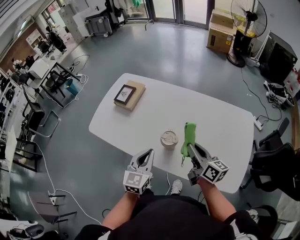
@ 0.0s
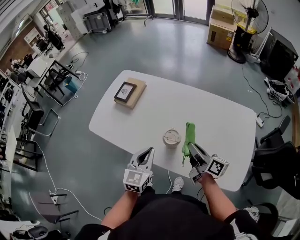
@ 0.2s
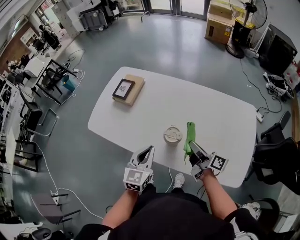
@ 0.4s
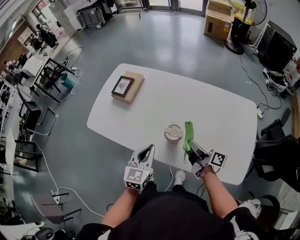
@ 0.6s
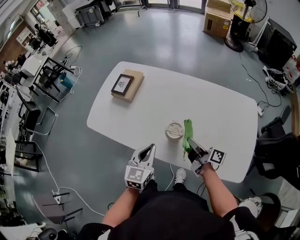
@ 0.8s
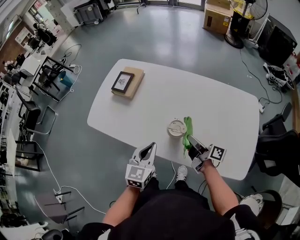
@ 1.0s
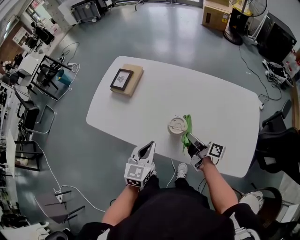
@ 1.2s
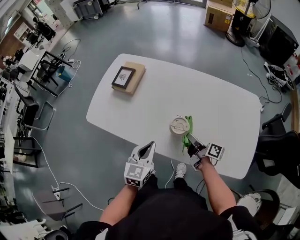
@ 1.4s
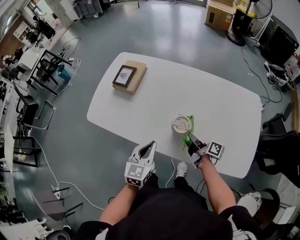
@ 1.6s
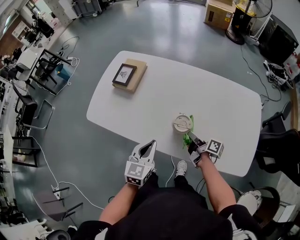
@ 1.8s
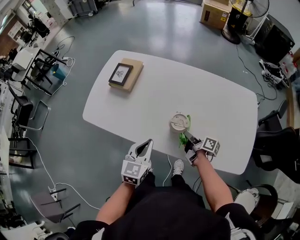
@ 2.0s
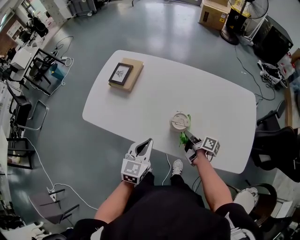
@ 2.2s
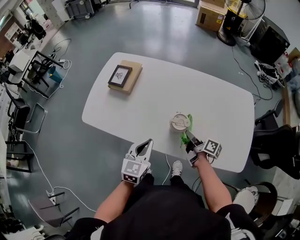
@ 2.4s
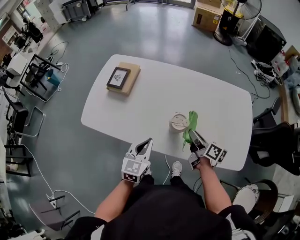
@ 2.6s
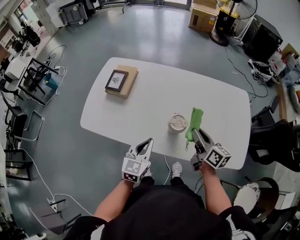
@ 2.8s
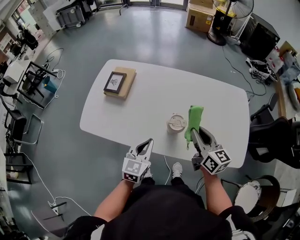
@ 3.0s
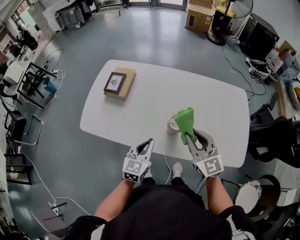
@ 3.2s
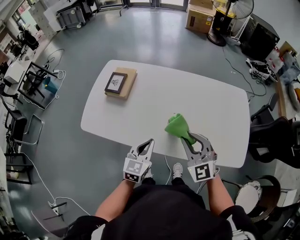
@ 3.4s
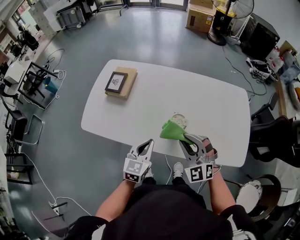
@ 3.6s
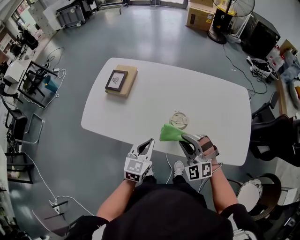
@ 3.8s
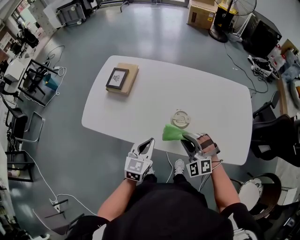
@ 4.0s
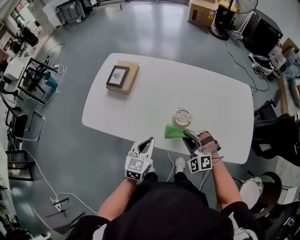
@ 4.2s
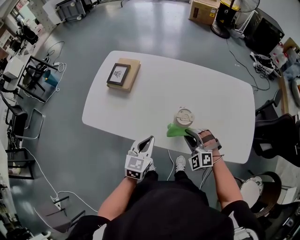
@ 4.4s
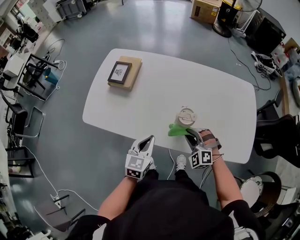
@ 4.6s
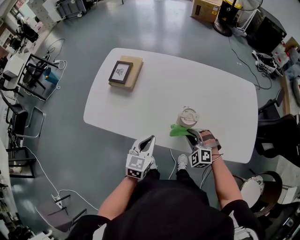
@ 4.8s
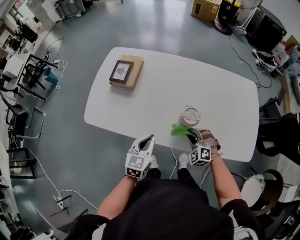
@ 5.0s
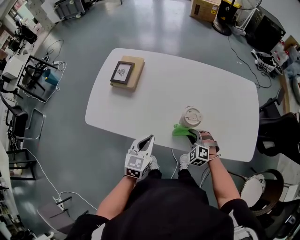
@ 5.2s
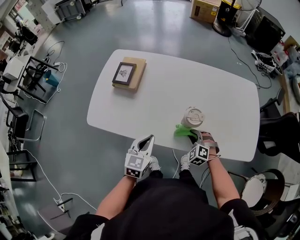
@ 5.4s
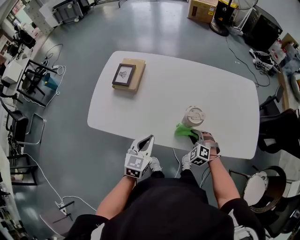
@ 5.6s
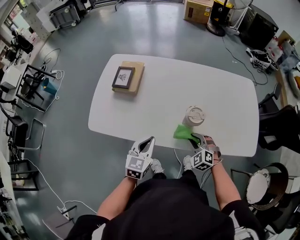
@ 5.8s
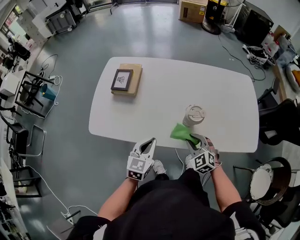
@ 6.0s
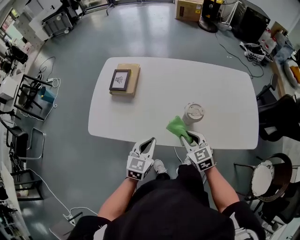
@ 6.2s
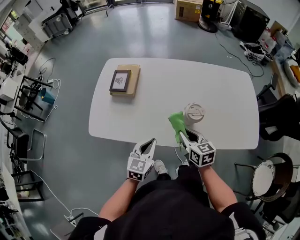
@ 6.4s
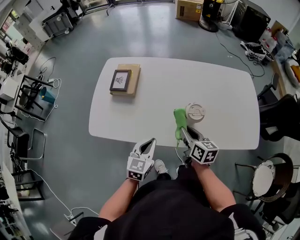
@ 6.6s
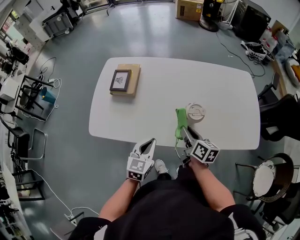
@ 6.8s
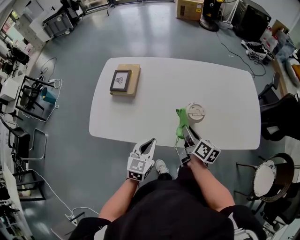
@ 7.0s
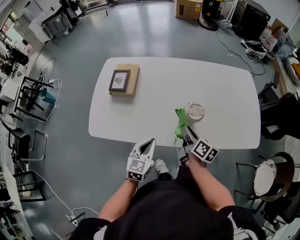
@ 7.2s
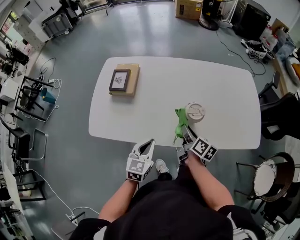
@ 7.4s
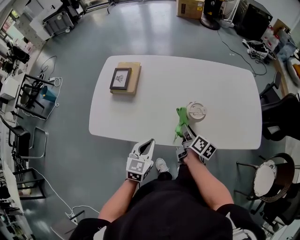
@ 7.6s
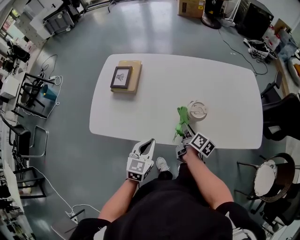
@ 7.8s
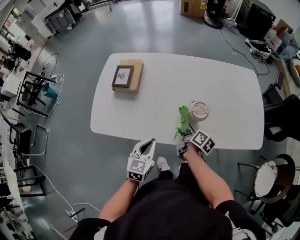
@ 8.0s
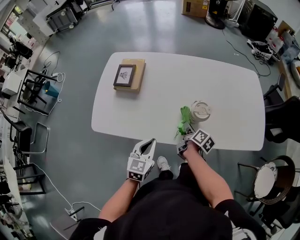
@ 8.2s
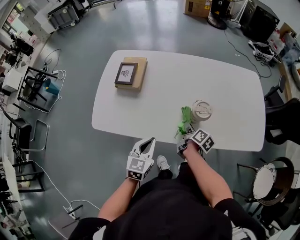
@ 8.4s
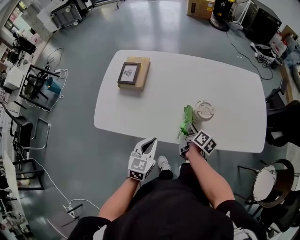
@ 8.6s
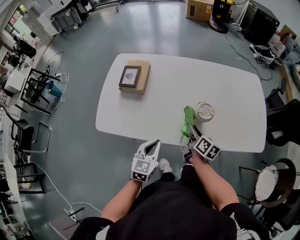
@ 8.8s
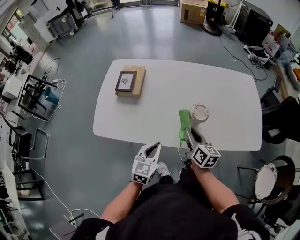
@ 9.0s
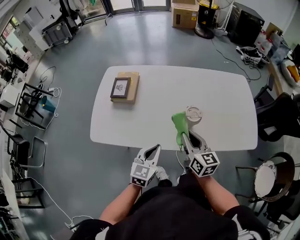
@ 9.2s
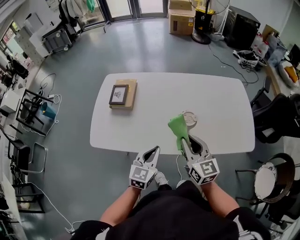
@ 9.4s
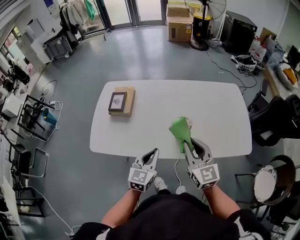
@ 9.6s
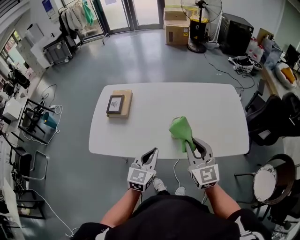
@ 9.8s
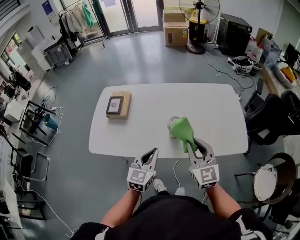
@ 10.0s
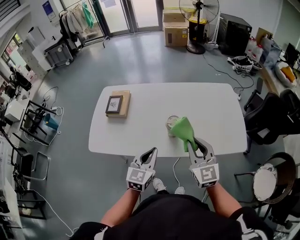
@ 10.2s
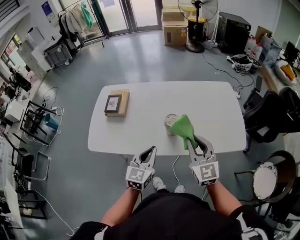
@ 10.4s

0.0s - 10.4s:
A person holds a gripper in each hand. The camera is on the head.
0.0s - 1.4s: The right gripper is displaced downward by some 15 cm, and changes its angle by approximately 30 degrees. Meanwhile the left gripper shifts by about 5 cm.
1.4s - 3.0s: The right gripper is displaced upward by some 15 cm, and twists approximately 50 degrees counterclockwise, seen from behind.
3.0s - 4.4s: The right gripper heads downward and to the left, covering approximately 15 cm, and twists roughly 80 degrees counterclockwise, seen from behind.
4.4s - 6.0s: The right gripper reaches about 10 cm downward, then returns, and swivels roughly 30 degrees. Meanwhile the left gripper goes roughly 5 cm to the left.
6.0s - 7.4s: The right gripper goes about 5 cm forward, and rolls clockwise, seen from behind, by about 90 degrees.
7.4s - 9.0s: The right gripper turns by roughly 20 degrees.
9.0s - 10.4s: The right gripper is displaced upward, to the right and backward by about 20 cm, and twists some 40 degrees counterclockwise, seen from behind. Meanwhile the left gripper is displaced upward and to the right by some 15 cm.

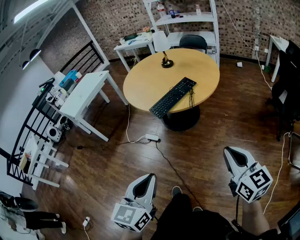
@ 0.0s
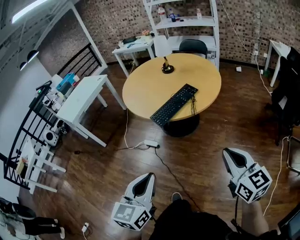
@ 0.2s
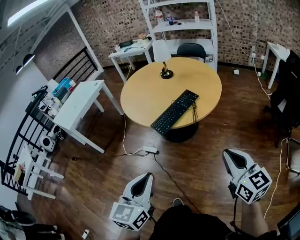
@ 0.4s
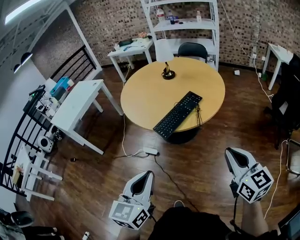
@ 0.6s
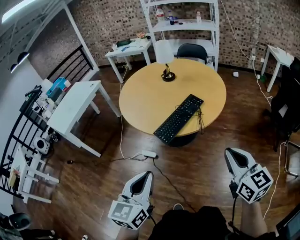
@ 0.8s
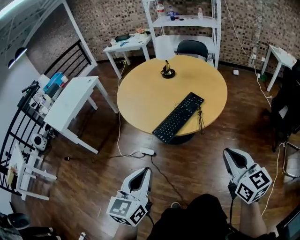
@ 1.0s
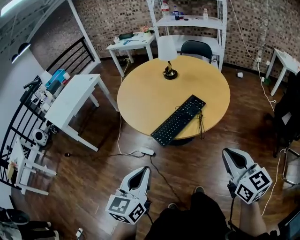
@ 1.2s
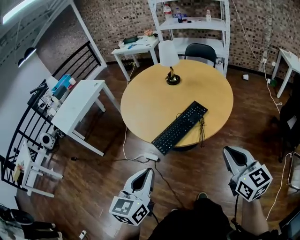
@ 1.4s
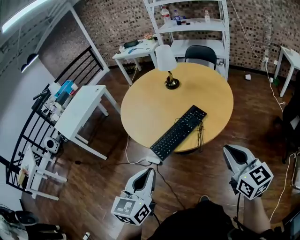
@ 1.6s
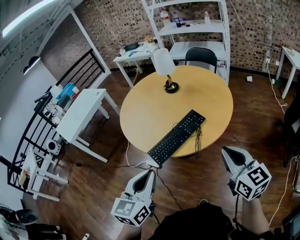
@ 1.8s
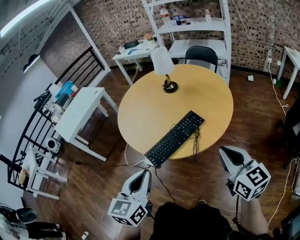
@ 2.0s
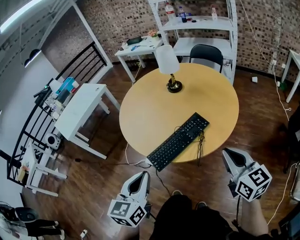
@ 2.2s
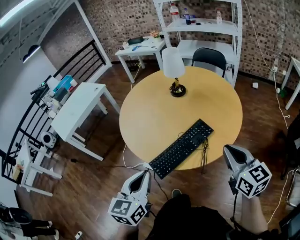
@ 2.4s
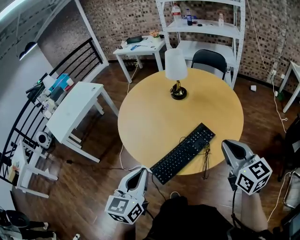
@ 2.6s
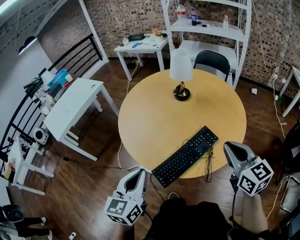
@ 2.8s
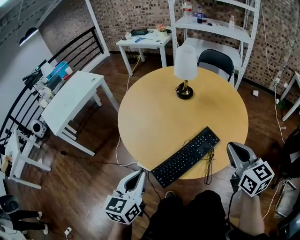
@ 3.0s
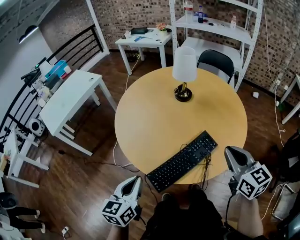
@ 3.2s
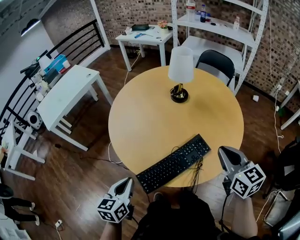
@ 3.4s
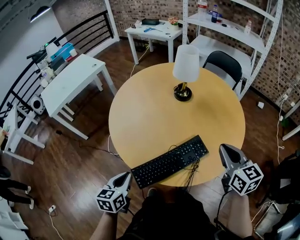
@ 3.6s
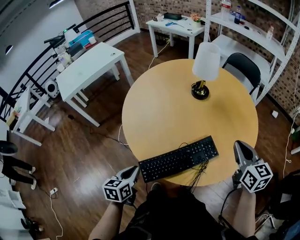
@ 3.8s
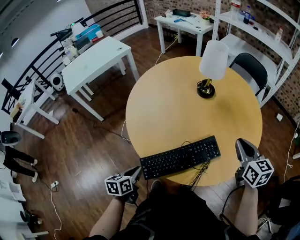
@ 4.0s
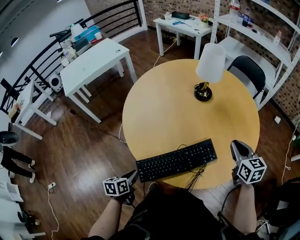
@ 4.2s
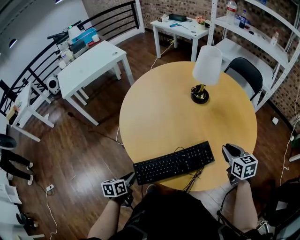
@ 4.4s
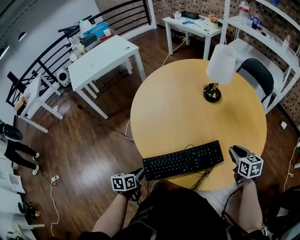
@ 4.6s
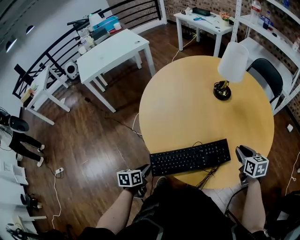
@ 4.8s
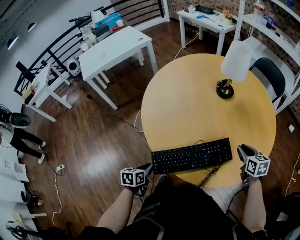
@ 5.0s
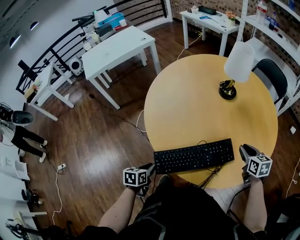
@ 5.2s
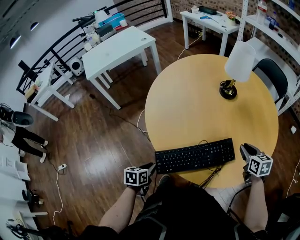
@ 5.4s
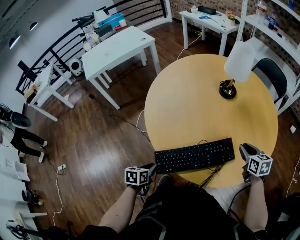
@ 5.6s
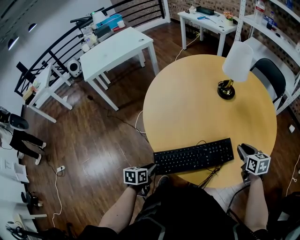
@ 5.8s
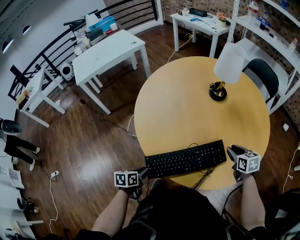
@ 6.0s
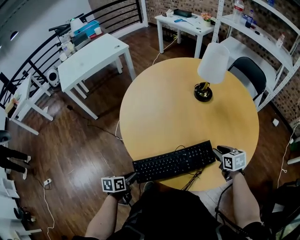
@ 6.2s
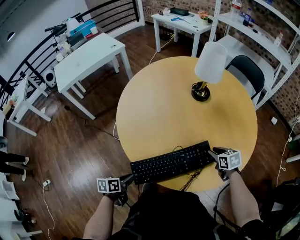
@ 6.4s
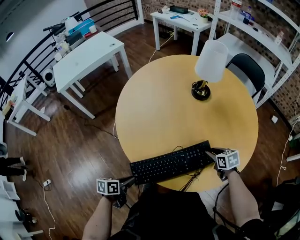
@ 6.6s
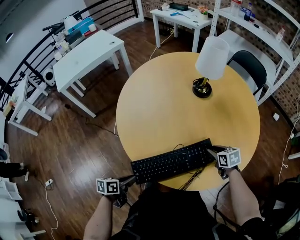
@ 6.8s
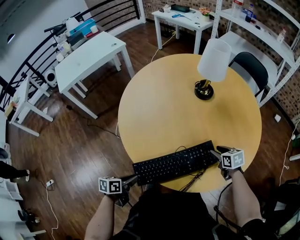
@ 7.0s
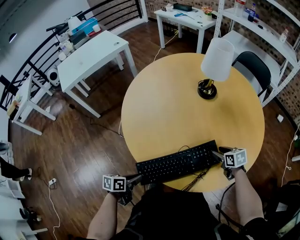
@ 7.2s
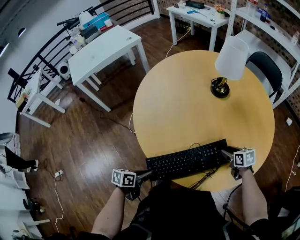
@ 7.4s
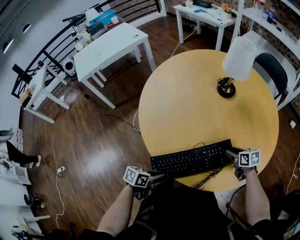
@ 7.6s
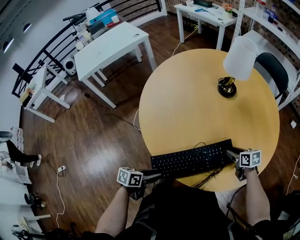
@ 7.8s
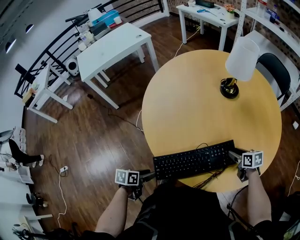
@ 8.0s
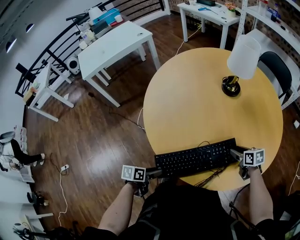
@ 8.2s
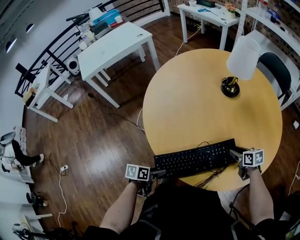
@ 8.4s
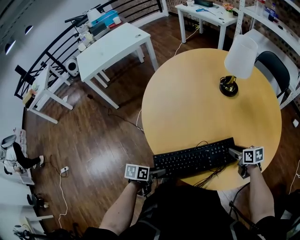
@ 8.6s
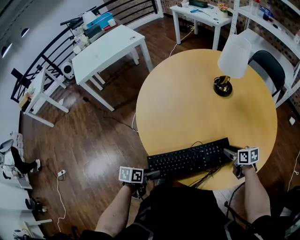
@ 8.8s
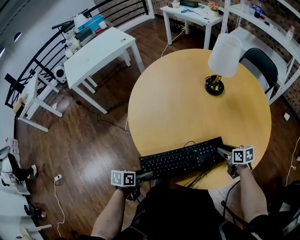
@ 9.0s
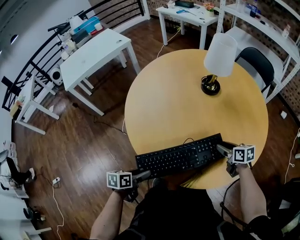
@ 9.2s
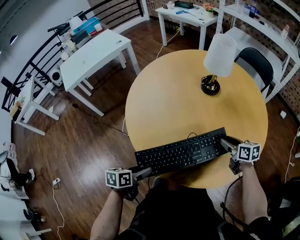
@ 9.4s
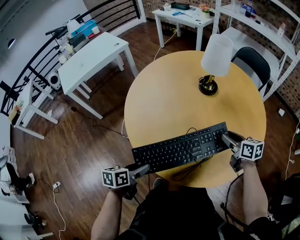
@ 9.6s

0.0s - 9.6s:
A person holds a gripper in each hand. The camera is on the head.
0.0s - 1.6s: Both grippers travel together forward, approximately 30 cm.
1.6s - 3.2s: The left gripper travels forward, downward and to the left by roughly 25 cm. The right gripper moves forward, some 25 cm.
3.2s - 4.8s: The left gripper travels downward by about 25 cm, and swivels about 40 degrees. Meanwhile the right gripper goes about 30 cm downward, forward and to the right, and rotates about 30 degrees.
4.8s - 6.4s: The right gripper goes approximately 10 cm downward.
6.4s - 8.0s: The left gripper travels to the right and back again, roughly 5 cm each way, and opens up.
8.0s - 9.6s: The left gripper goes about 15 cm upward and forward; the right gripper travels upward by roughly 15 cm, and changes its angle by about 20 degrees.

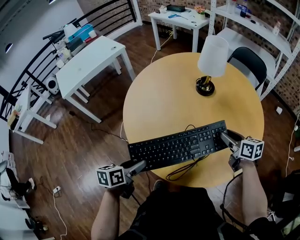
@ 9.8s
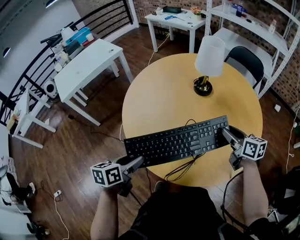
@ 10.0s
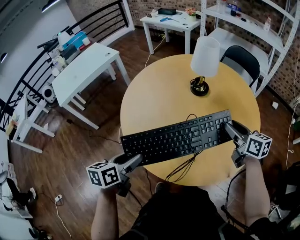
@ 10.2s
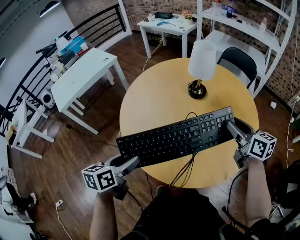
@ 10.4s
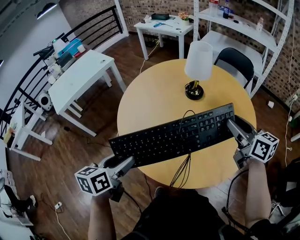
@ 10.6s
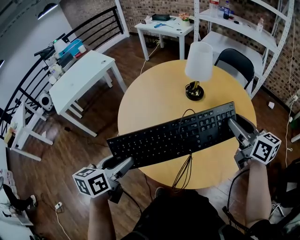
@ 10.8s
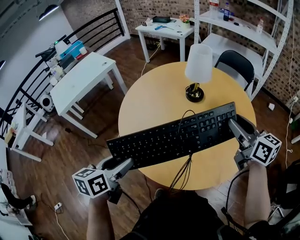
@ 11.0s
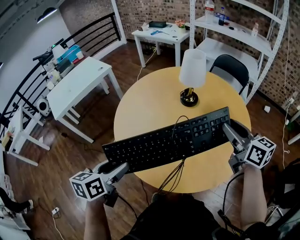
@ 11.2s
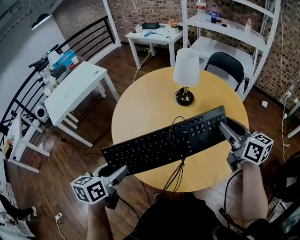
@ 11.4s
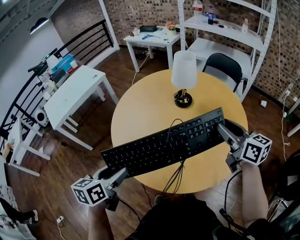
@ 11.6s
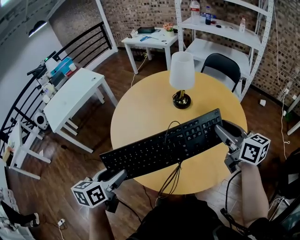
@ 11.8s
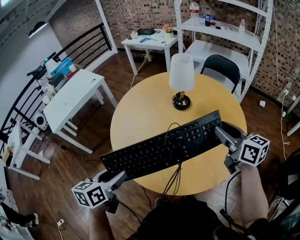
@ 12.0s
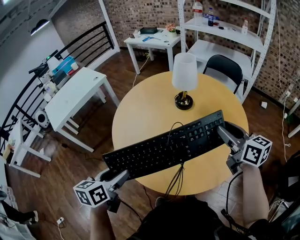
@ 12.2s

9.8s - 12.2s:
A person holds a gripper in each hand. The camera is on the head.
9.8s - 11.0s: Both grippers travel together upward, approximately 20 cm. The right gripper rotates about 20 degrees.
11.0s - 12.2s: The grippers make only small movements.

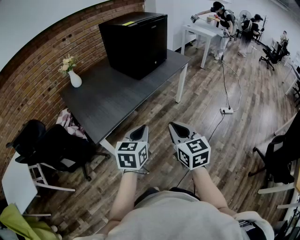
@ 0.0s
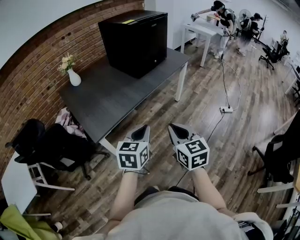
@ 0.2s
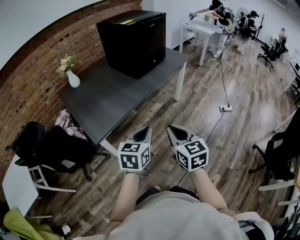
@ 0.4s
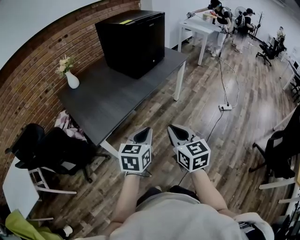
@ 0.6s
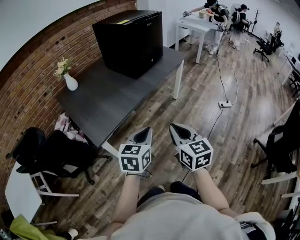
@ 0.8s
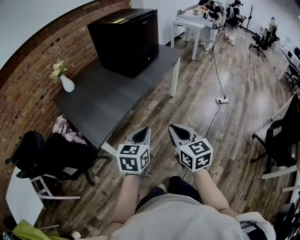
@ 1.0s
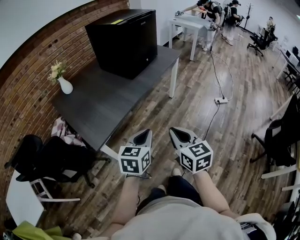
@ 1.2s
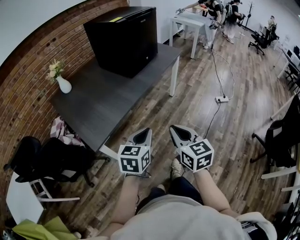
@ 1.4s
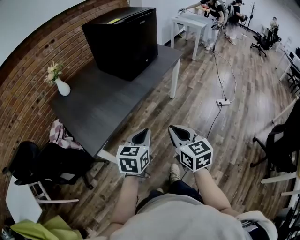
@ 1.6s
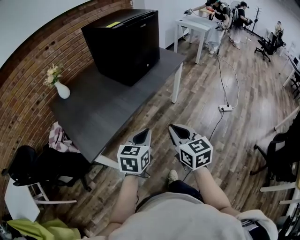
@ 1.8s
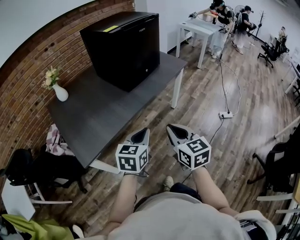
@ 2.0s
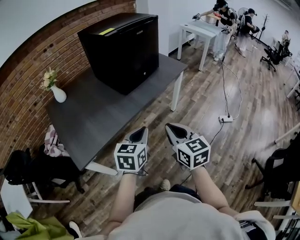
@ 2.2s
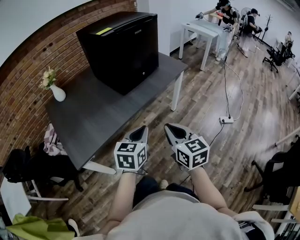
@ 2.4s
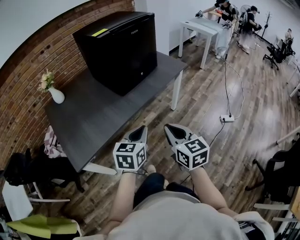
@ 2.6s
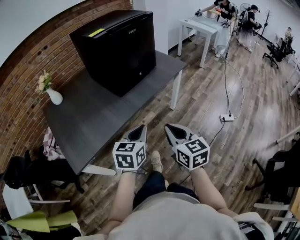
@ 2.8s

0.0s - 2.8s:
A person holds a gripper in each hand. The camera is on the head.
0.0s - 1.4s: There are only small adjustments of the grippers.
1.4s - 2.8s: The grippers both shift forward and to the right by some 25 cm.
